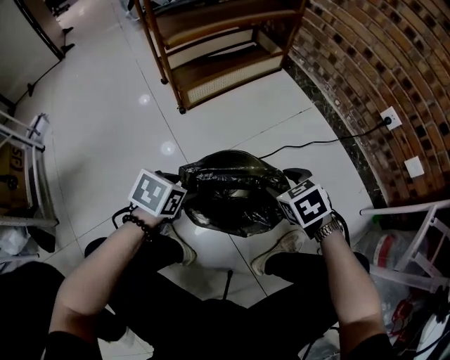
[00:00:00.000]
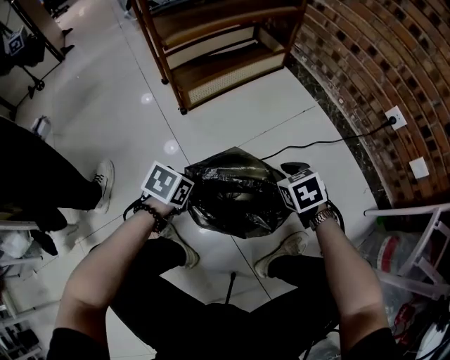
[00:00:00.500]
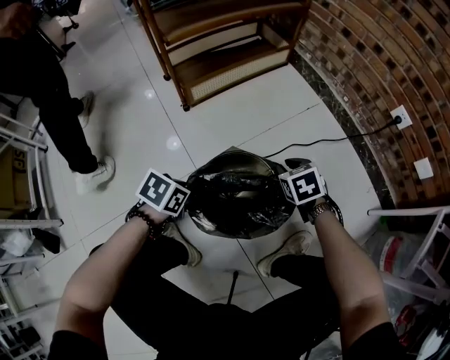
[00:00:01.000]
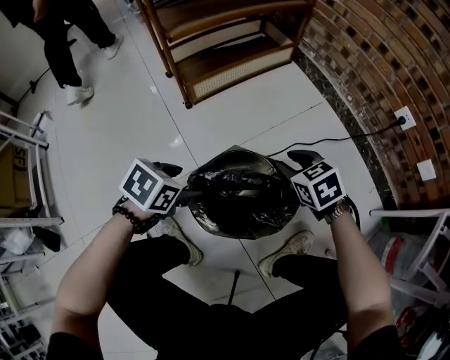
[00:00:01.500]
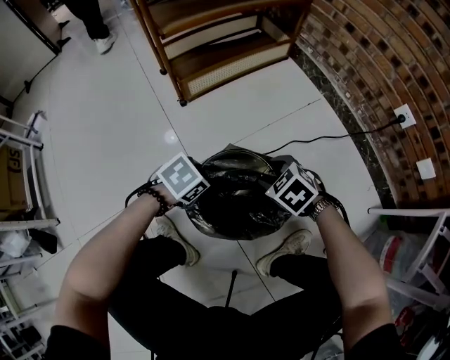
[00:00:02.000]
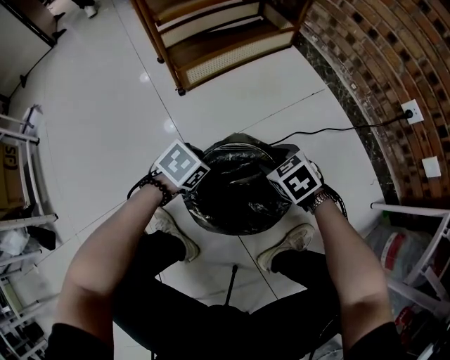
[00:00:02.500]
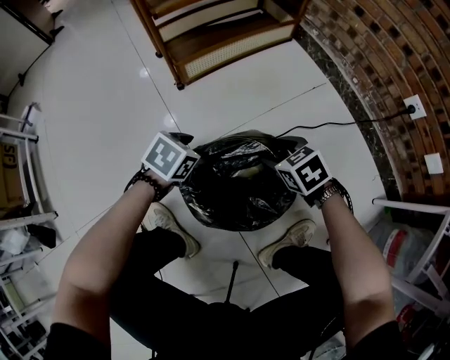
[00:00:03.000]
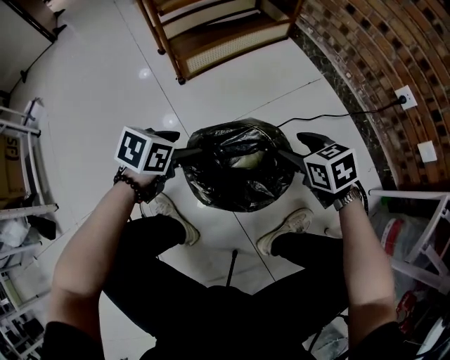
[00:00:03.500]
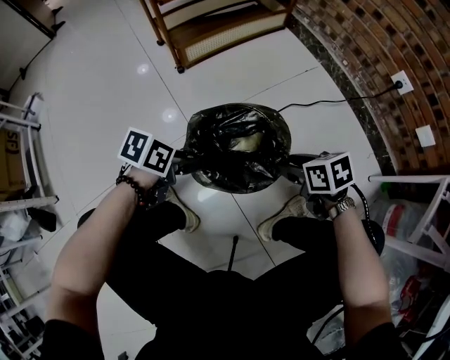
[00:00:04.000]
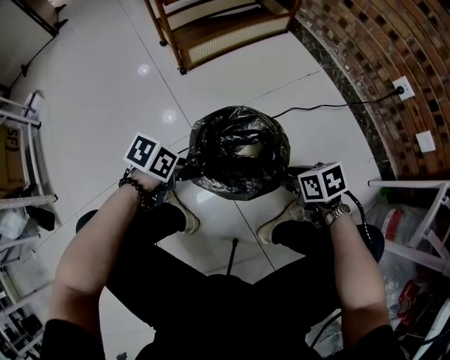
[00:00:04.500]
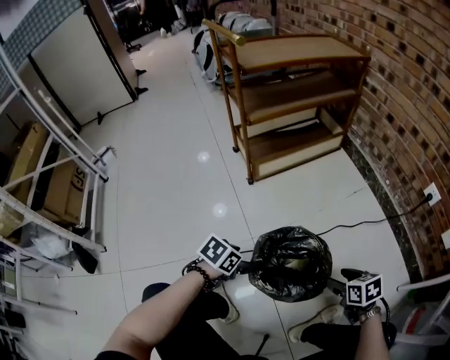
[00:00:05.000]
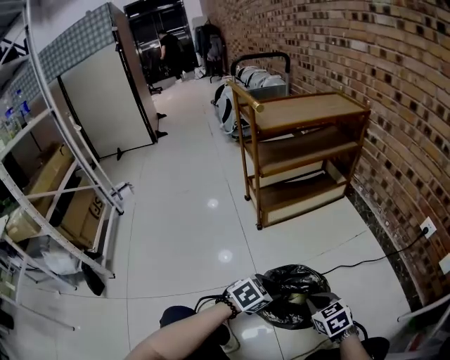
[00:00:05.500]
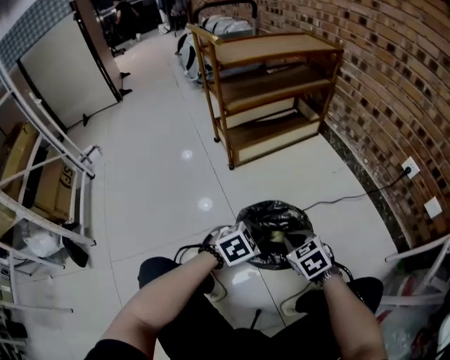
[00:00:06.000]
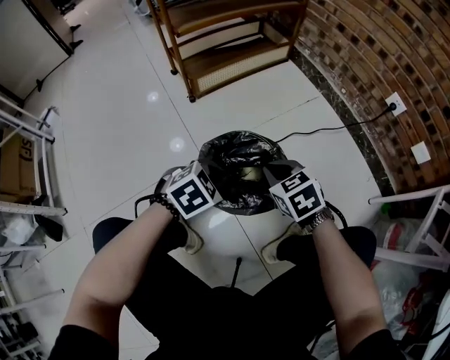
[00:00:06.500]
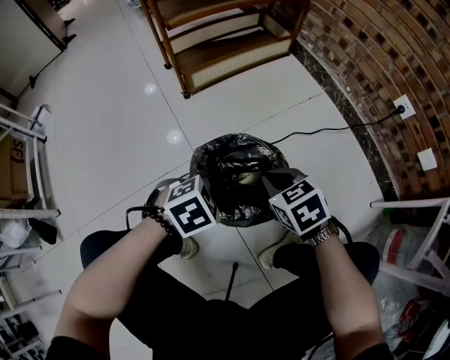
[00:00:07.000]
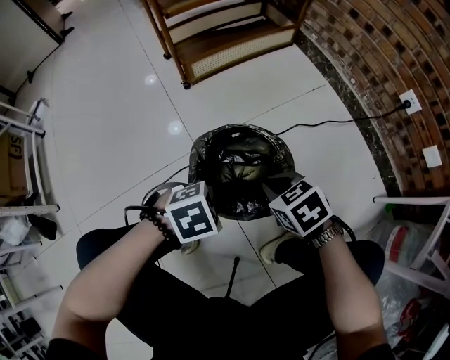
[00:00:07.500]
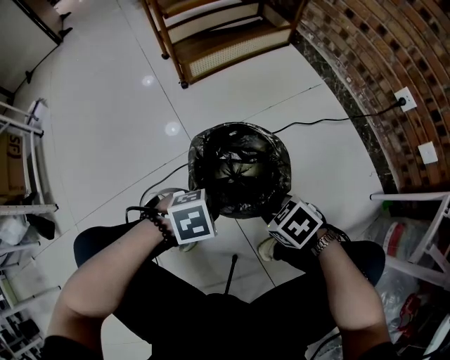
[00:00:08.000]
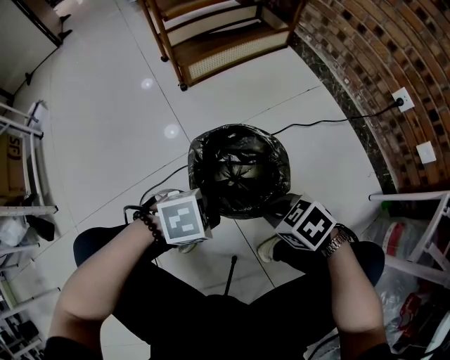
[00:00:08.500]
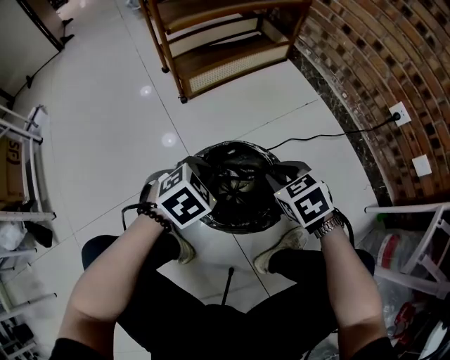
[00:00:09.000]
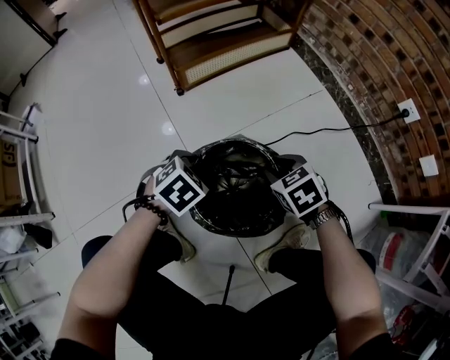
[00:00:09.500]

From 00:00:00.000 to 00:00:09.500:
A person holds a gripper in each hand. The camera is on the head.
From 00:00:00.000 to 00:00:02.000: The left gripper swings up and down, some 5 cm each way, with 2 reversals, and turns by some 20 degrees; the right gripper goes up and down, approximately 5 cm each way, reversing 2 times, turns by approximately 20 degrees, and closes, then reopens.
From 00:00:02.000 to 00:00:04.000: The left gripper changes place by some 10 cm, changes its angle by approximately 30 degrees, and closes. The right gripper shifts by about 10 cm, and twists roughly 40 degrees clockwise, seen from behind.
From 00:00:04.000 to 00:00:05.500: The left gripper shifts roughly 5 cm upward, and changes its angle by roughly 40 degrees. The right gripper changes place by about 10 cm, rotates about 30 degrees, and closes.
From 00:00:05.500 to 00:00:07.500: The left gripper moves about 10 cm, rotates approximately 30 degrees, and closes its fingers.
From 00:00:07.500 to 00:00:09.500: The left gripper ends up approximately 15 cm from where it was, rotates roughly 20 degrees, and opens up. Meanwhile the right gripper moves up and down over approximately 5 cm, changing direction 2 times, and opens up.

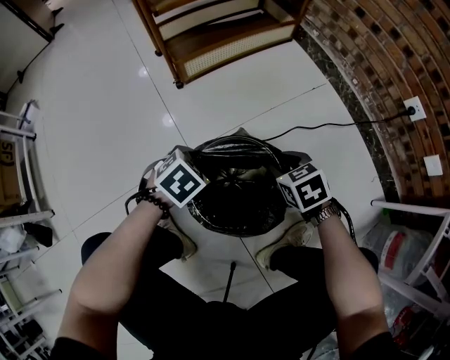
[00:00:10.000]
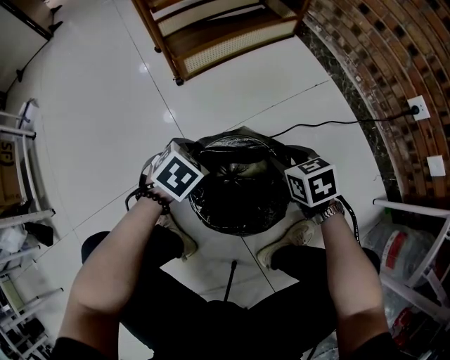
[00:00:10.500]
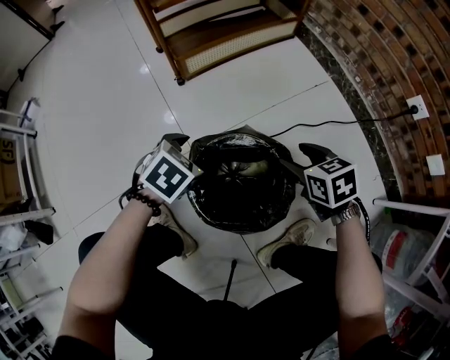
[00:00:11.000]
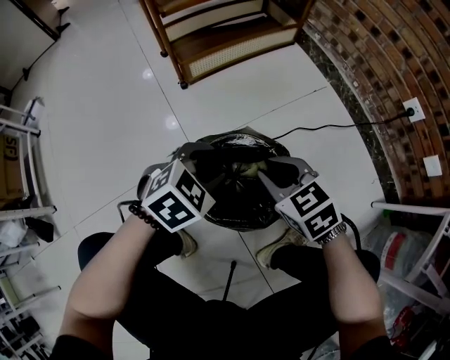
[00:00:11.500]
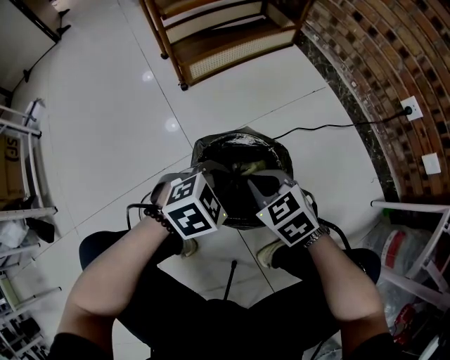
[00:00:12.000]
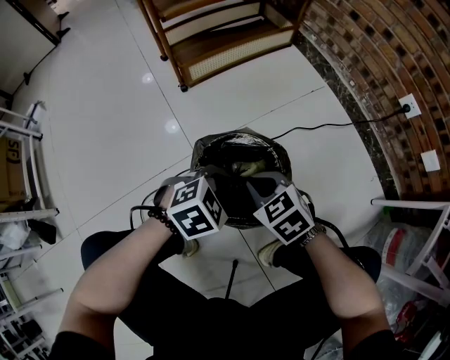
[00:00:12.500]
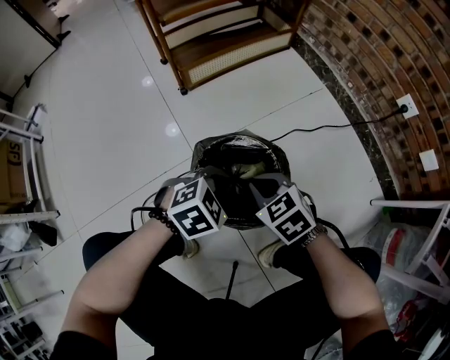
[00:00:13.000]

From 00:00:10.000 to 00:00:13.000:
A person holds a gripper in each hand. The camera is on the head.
From 00:00:10.000 to 00:00:11.500: Both grippers travel together upward, some 10 cm. The left gripper opens, then closes once more. The right gripper opens, then closes once more.
From 00:00:11.500 to 00:00:13.000: The right gripper moves roughly 5 cm. Meanwhile the left gripper shifts by roughly 5 cm, and closes its fingers.

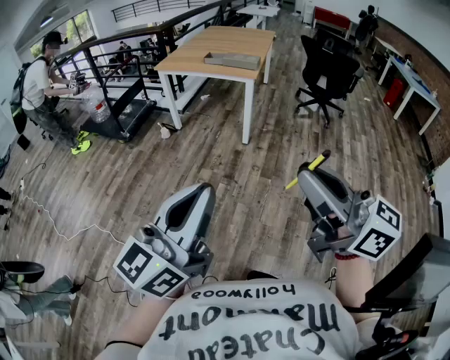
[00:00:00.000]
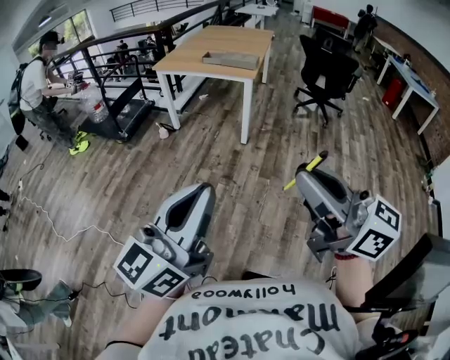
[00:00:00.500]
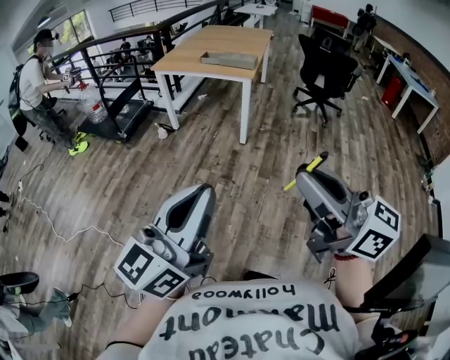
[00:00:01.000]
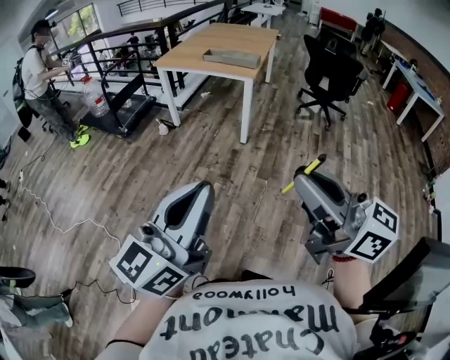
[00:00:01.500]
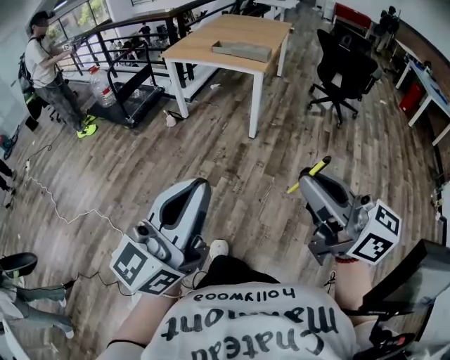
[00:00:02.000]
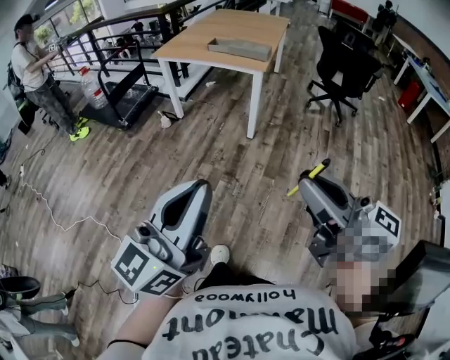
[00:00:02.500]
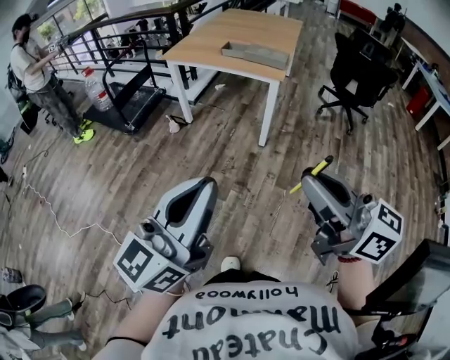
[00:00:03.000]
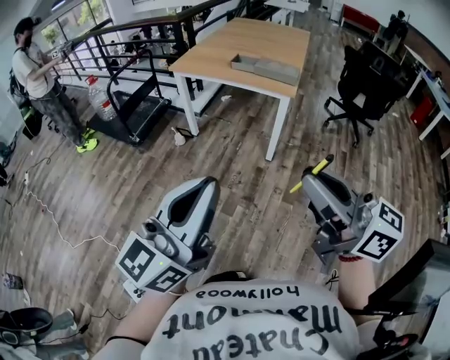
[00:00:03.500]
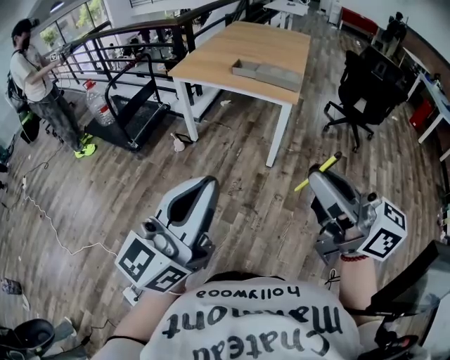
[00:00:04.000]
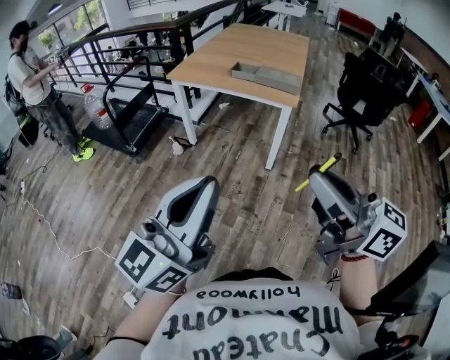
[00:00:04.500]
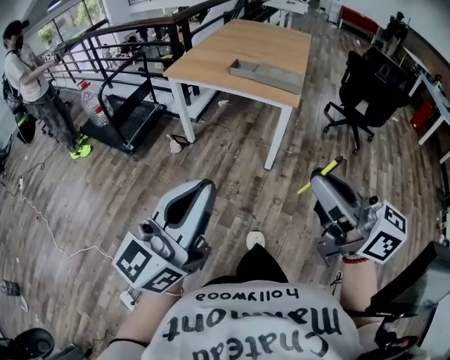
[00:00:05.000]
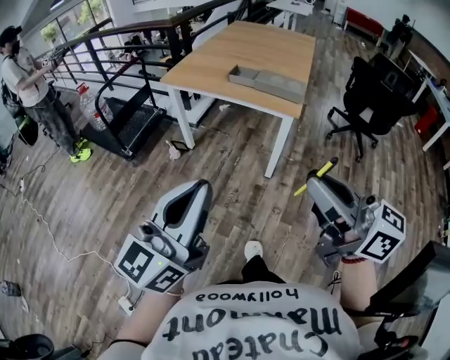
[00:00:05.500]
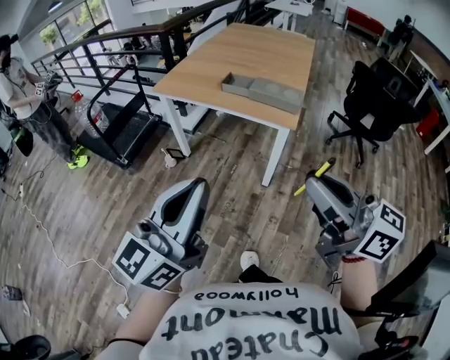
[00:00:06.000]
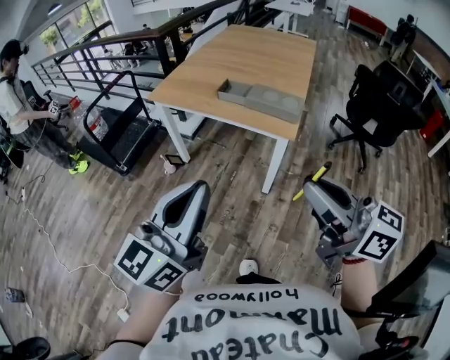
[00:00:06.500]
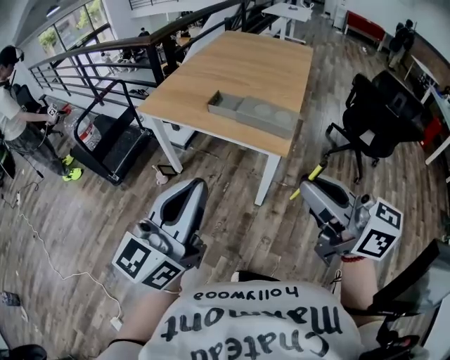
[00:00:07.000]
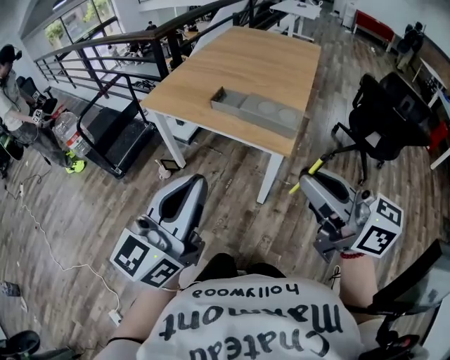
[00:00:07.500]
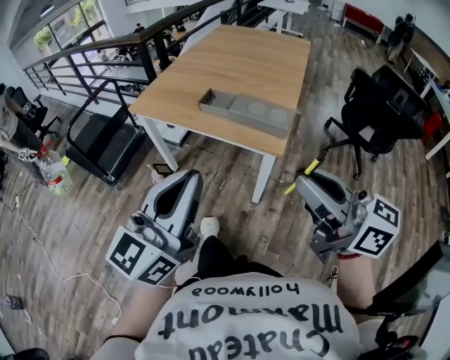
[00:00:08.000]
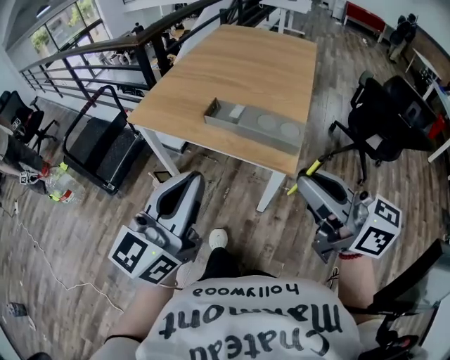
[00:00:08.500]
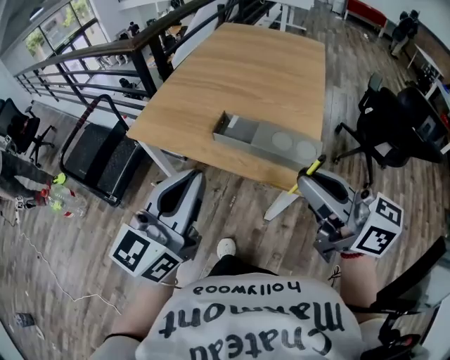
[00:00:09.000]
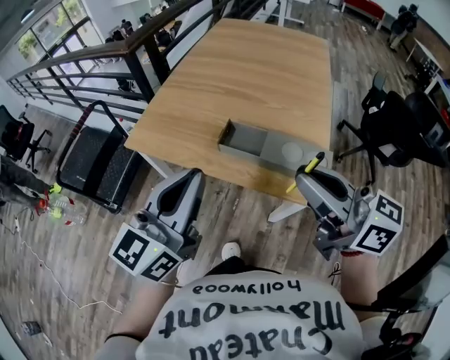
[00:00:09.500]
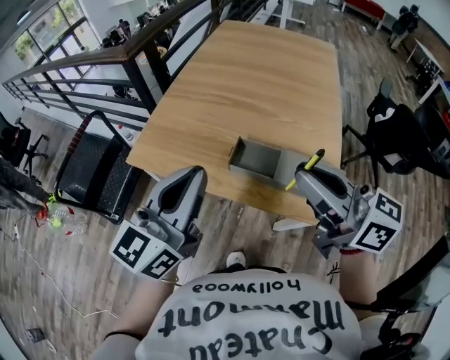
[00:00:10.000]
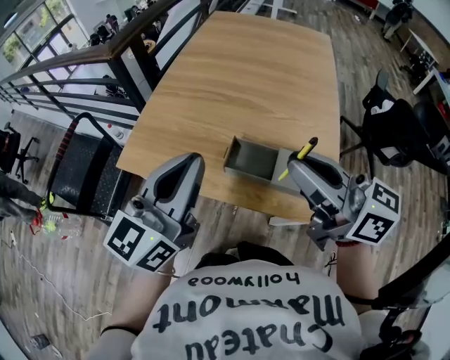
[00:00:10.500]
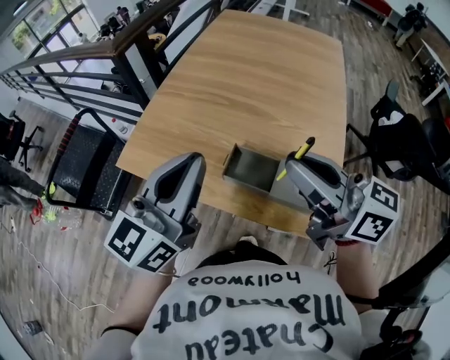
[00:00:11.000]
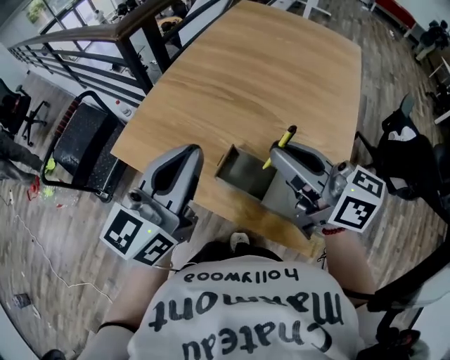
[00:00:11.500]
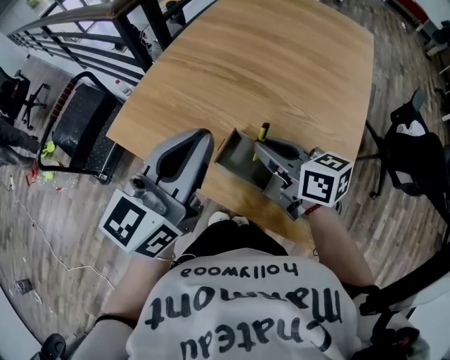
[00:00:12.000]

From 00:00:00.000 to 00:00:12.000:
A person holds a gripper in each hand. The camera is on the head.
From 00:00:00.000 to 00:00:02.000: The left gripper ends up roughly 5 cm from where it was. The right gripper moves to the right and forward, some 10 cm.
From 00:00:02.000 to 00:00:04.000: The two grippers go roughly 30 cm forward.
From 00:00:04.000 to 00:00:06.000: The left gripper shifts approximately 20 cm forward; the right gripper is displaced forward and to the right by roughly 20 cm.
From 00:00:06.000 to 00:00:08.000: The two grippers go about 20 cm forward and to the right.
From 00:00:08.000 to 00:00:10.000: Both grippers move forward, approximately 35 cm.
From 00:00:10.000 to 00:00:12.000: The left gripper shifts approximately 15 cm forward and to the right. The right gripper moves downward and forward, about 25 cm, and changes its angle by roughly 20 degrees.

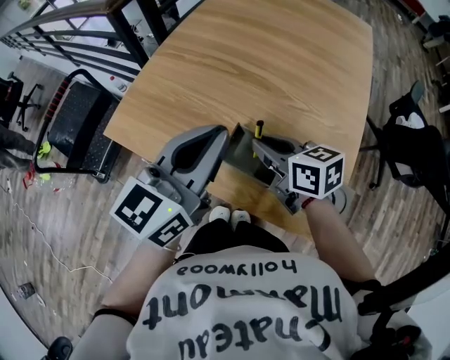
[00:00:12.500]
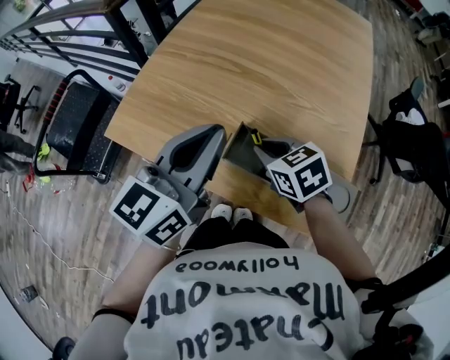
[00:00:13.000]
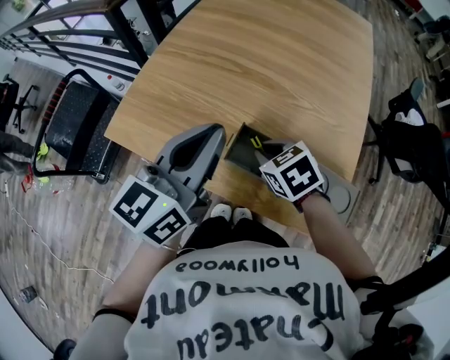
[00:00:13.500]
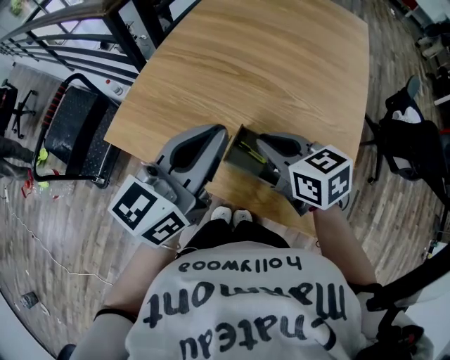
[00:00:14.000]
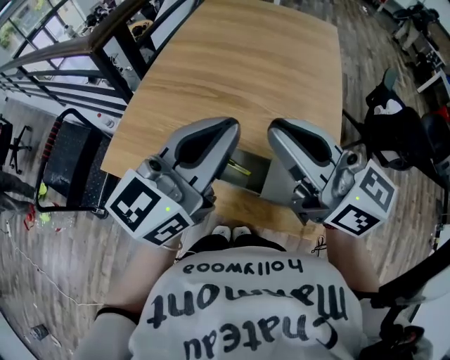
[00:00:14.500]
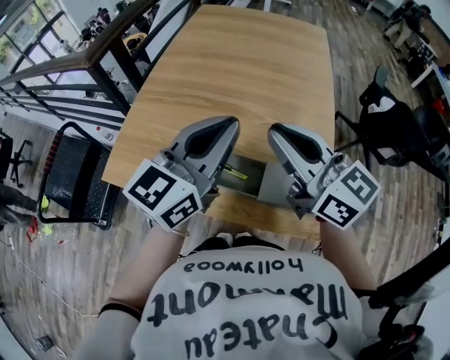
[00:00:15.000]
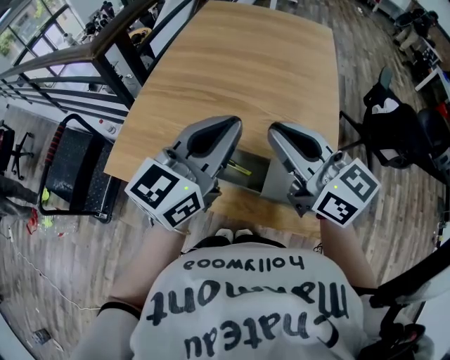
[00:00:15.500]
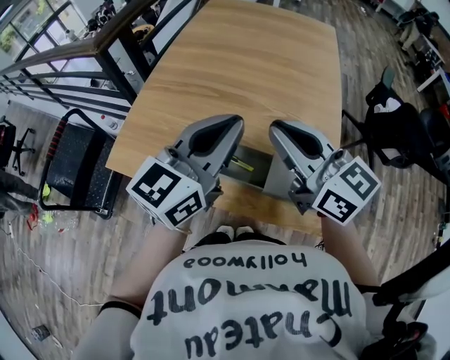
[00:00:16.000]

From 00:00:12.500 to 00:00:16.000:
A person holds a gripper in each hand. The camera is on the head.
From 00:00:12.500 to 00:00:14.500: The left gripper travels upward by roughly 10 cm. Meanwhile the right gripper shifts roughly 25 cm upward, and tips its fingers upward by some 30 degrees.
From 00:00:14.500 to 00:00:16.000: The right gripper changes place by roughly 5 cm.
